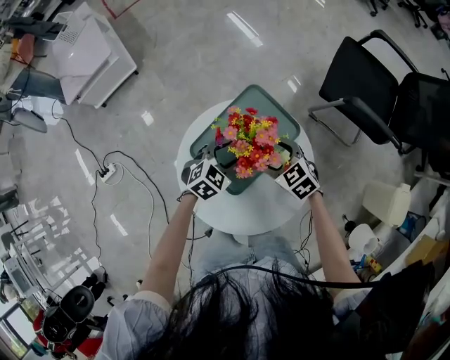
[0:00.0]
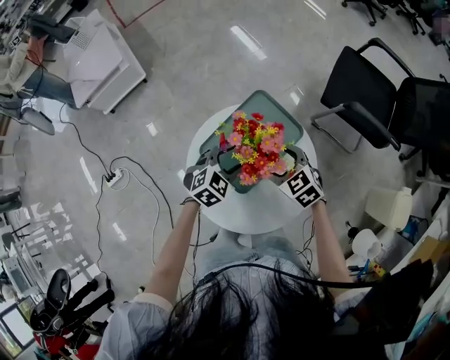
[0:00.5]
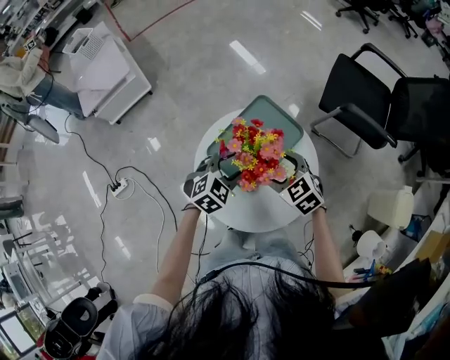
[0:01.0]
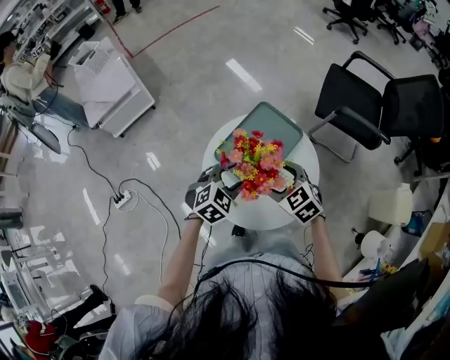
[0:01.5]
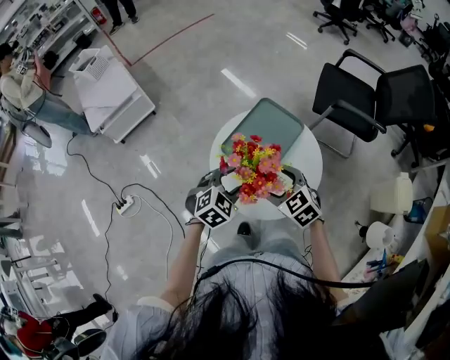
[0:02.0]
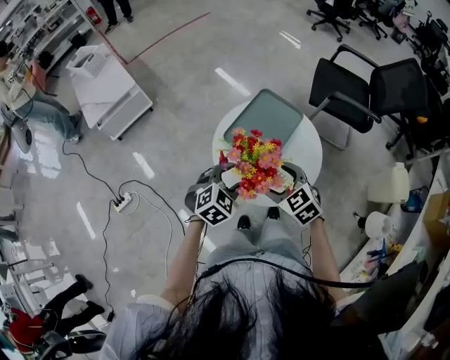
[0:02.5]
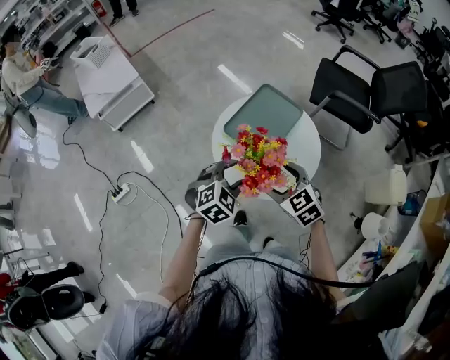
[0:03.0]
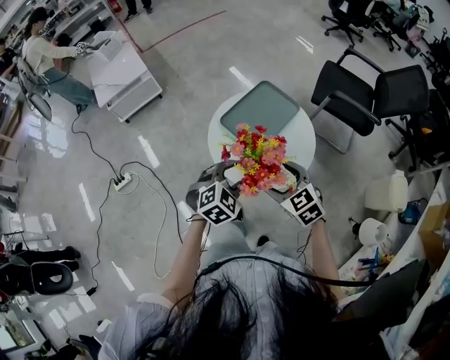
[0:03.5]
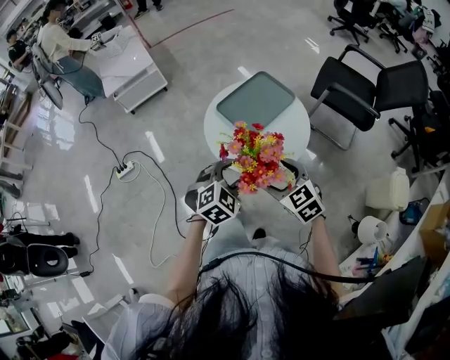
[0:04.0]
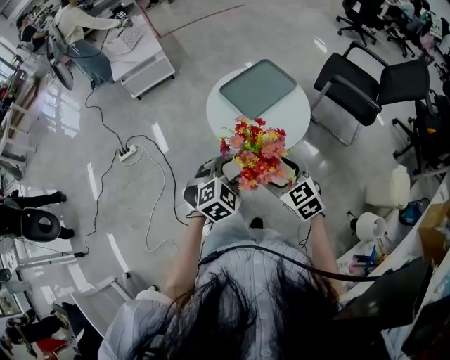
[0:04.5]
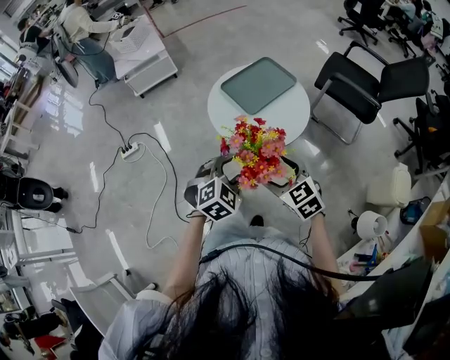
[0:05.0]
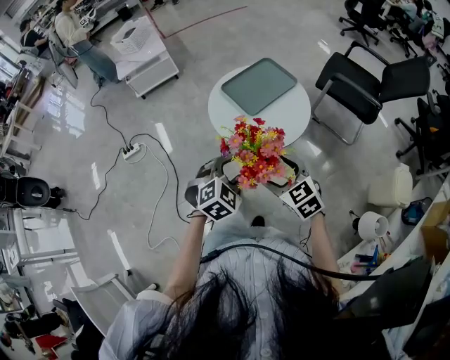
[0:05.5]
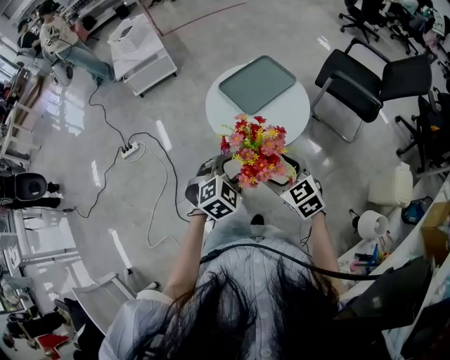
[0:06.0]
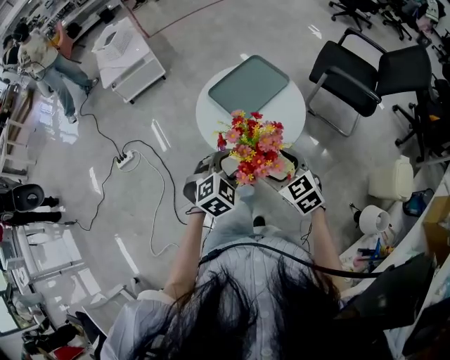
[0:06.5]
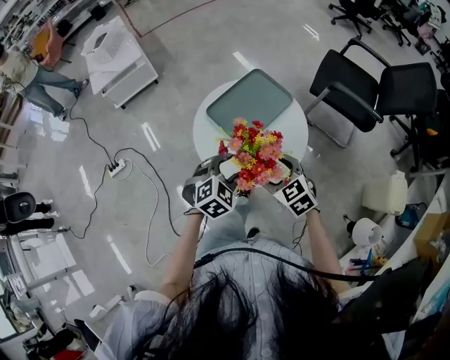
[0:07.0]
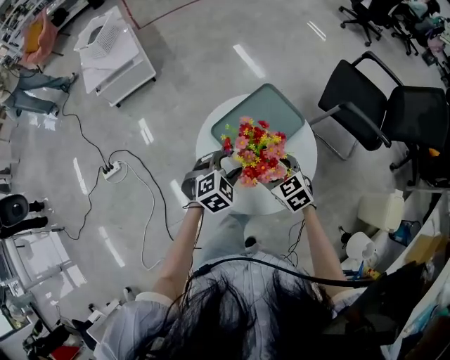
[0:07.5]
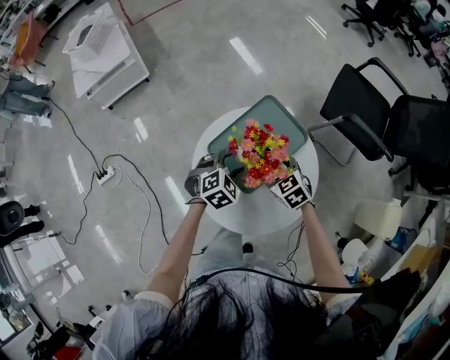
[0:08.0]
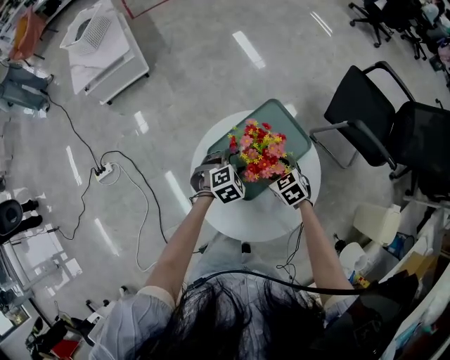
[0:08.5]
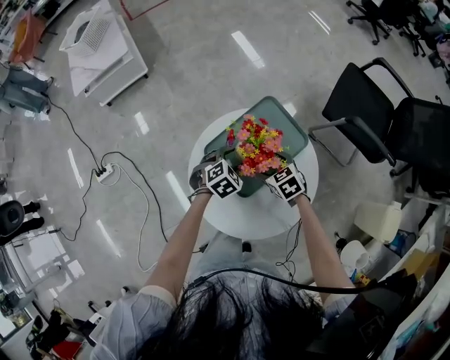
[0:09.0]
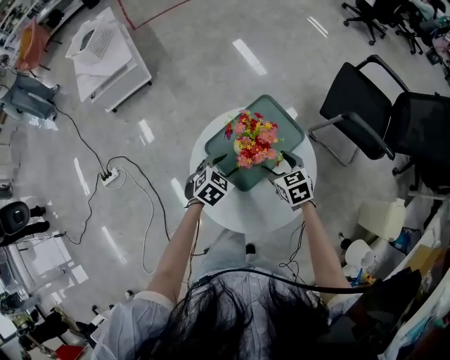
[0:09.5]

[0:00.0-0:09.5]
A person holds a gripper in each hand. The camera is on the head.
0:00.0 to 0:02.0: Both grippers travel together backward, upward and to the left, approximately 20 cm.
0:02.0 to 0:04.0: Both grippers travel together backward and to the right, roughly 20 cm.
0:04.0 to 0:05.5: Both grippers travel together backward, roughly 10 cm.
0:05.5 to 0:07.5: The grippers both shift forward by some 30 cm.
0:07.5 to 0:09.5: The left gripper travels forward and downward by some 10 cm. Meanwhile the right gripper travels forward, downward and to the right by approximately 10 cm.

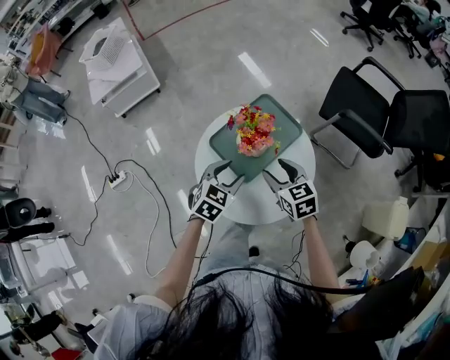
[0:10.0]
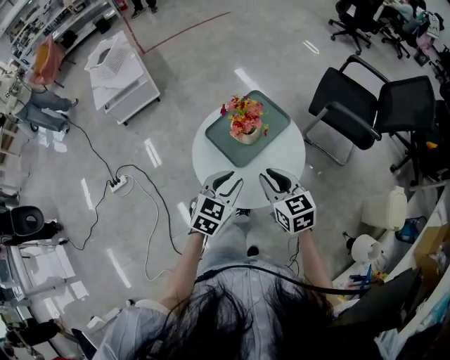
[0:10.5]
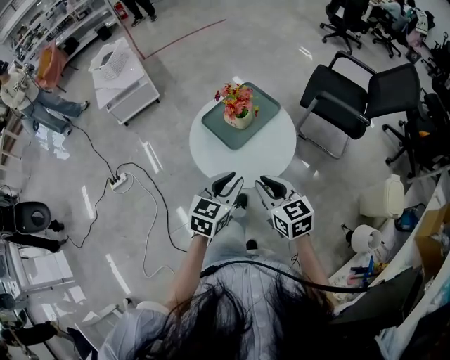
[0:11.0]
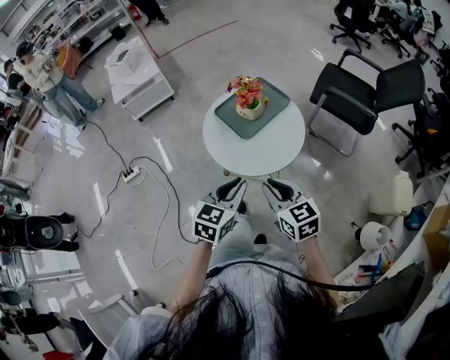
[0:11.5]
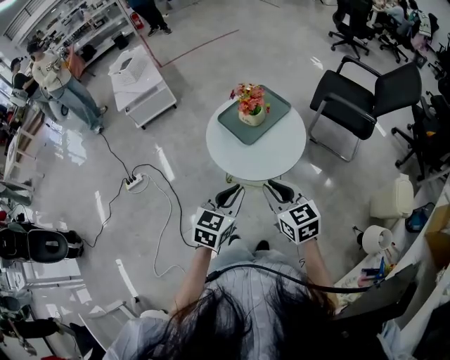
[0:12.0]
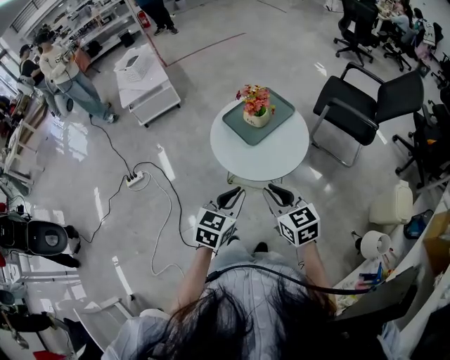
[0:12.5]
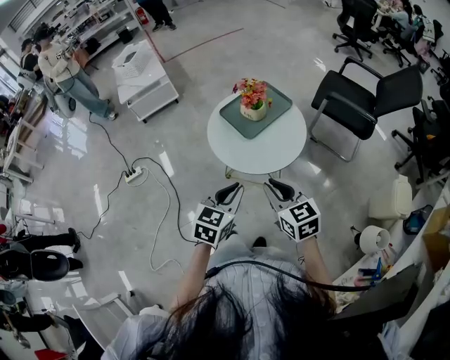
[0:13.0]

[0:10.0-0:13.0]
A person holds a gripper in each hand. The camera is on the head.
0:10.0 to 0:11.5: The left gripper is displaced backward and upward by some 30 cm, and closes up. Meanwhile the right gripper shifts approximately 30 cm backward, and closes.
0:11.5 to 0:13.0: The grippers stay close to where they were, moving slightly.

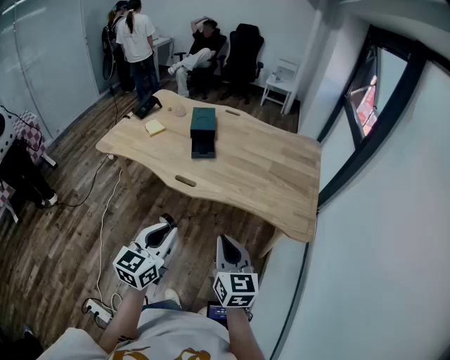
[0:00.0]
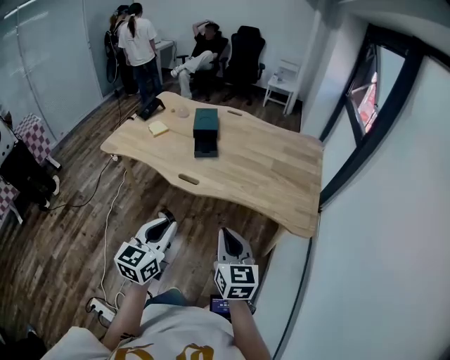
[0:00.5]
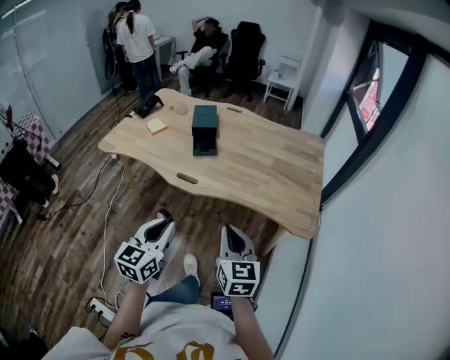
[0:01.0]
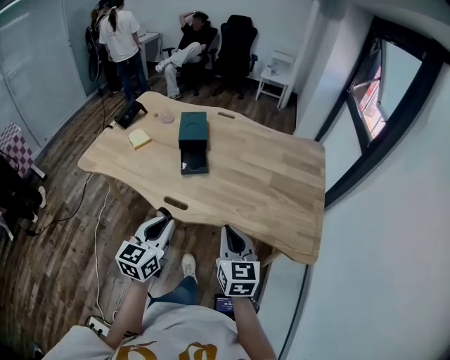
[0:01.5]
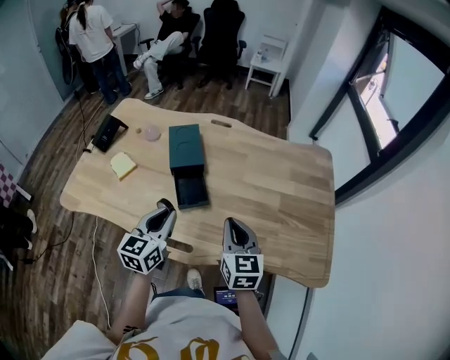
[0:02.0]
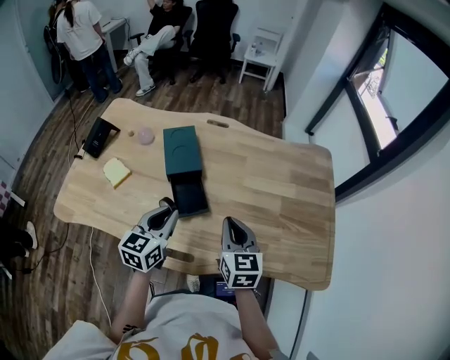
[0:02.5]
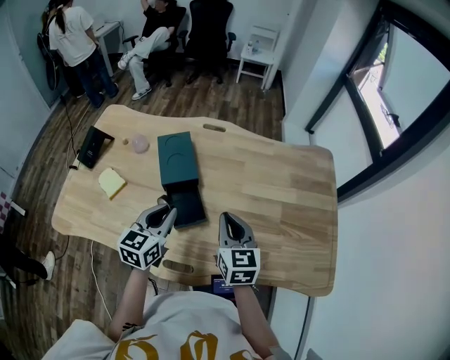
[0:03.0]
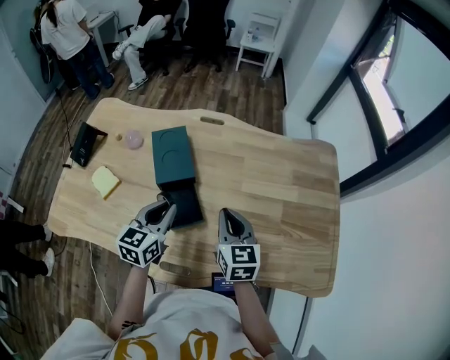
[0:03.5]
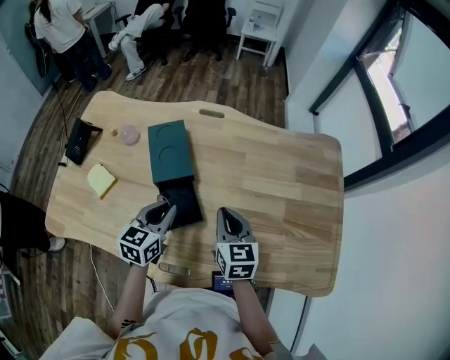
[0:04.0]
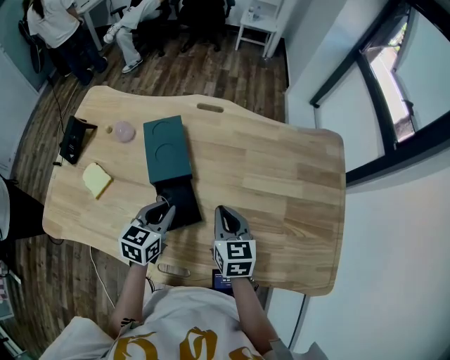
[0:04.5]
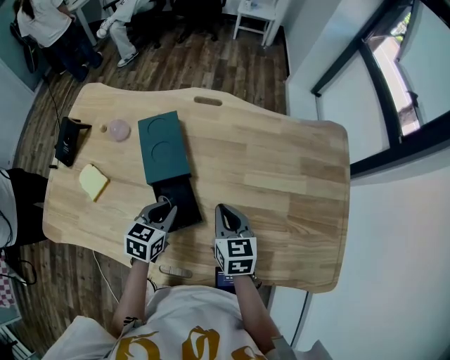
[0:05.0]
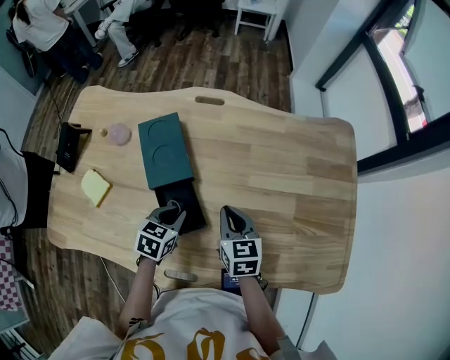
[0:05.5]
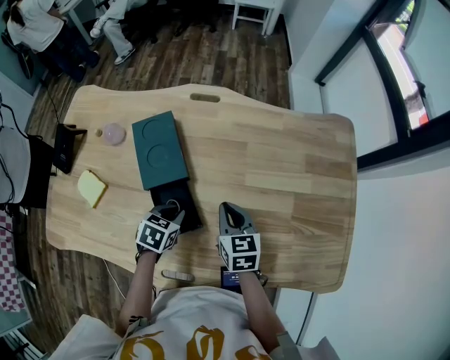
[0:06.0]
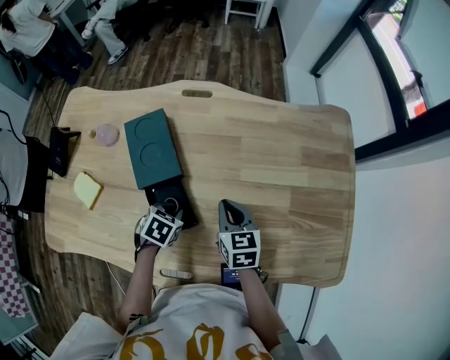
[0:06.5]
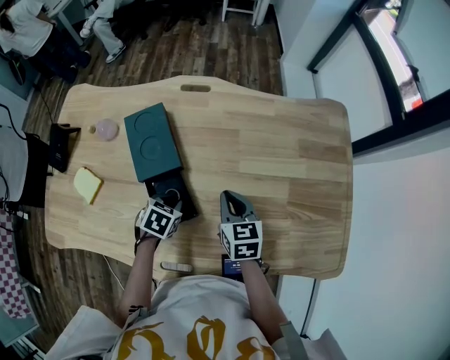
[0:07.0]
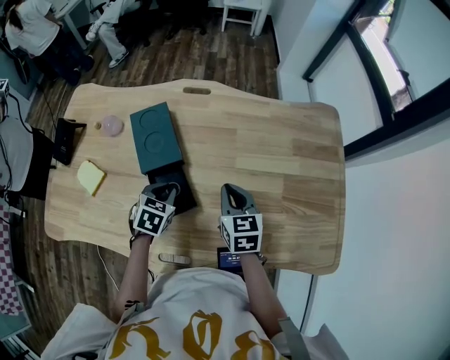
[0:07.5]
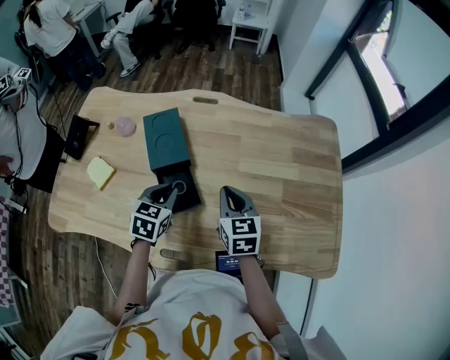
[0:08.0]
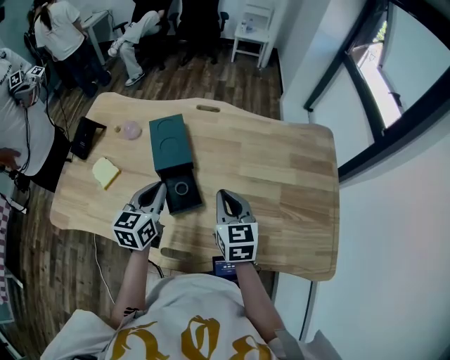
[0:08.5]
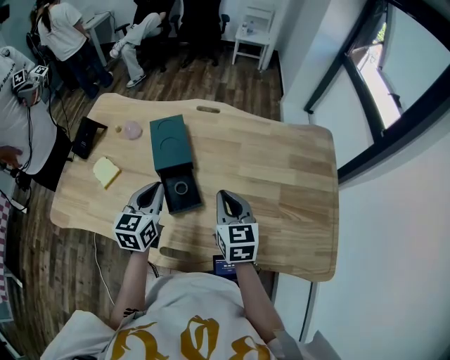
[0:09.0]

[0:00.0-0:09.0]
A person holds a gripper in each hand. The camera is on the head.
0:00.0 to 0:02.0: The pair of grippers is taken forward, approximately 40 cm.
0:02.0 to 0:04.5: The two grippers go approximately 20 cm forward and downward.
0:04.5 to 0:07.0: The right gripper heads downward, covering some 5 cm. Meanwhile the left gripper goes some 10 cm downward, and tilts its fingers some 40 degrees downward.
0:07.0 to 0:09.0: The right gripper is displaced upward and backward by some 15 cm; the left gripper travels upward by approximately 20 cm, and tilts its fingers approximately 50 degrees upward.

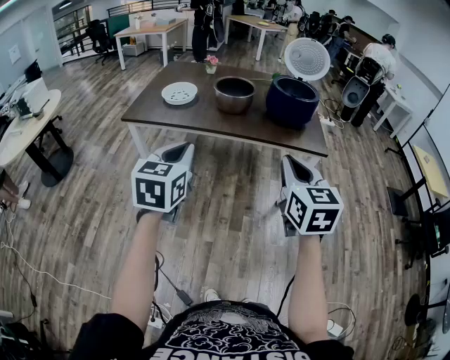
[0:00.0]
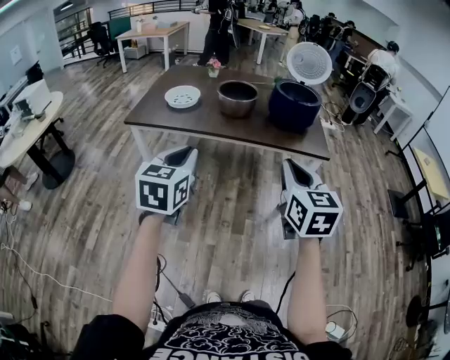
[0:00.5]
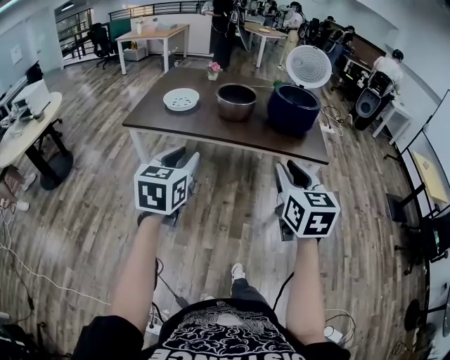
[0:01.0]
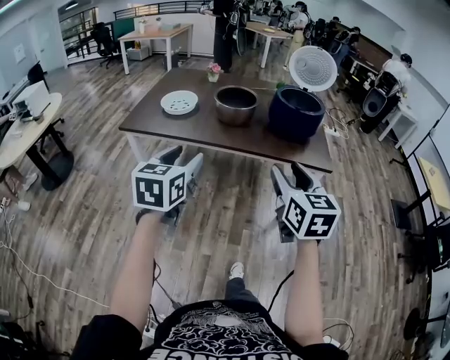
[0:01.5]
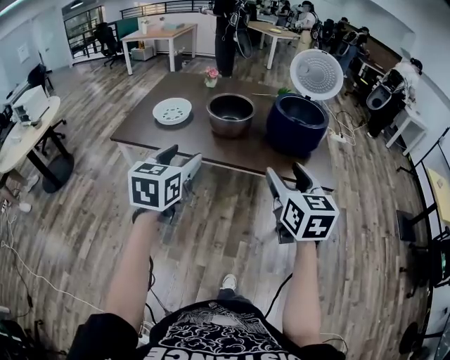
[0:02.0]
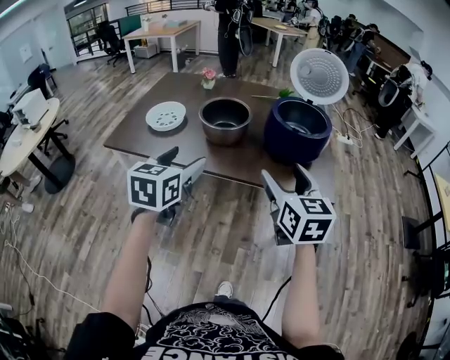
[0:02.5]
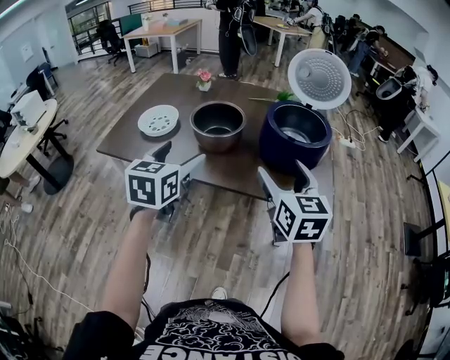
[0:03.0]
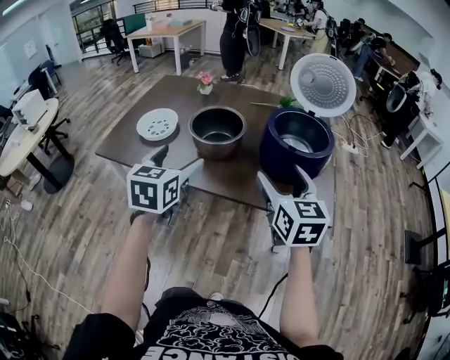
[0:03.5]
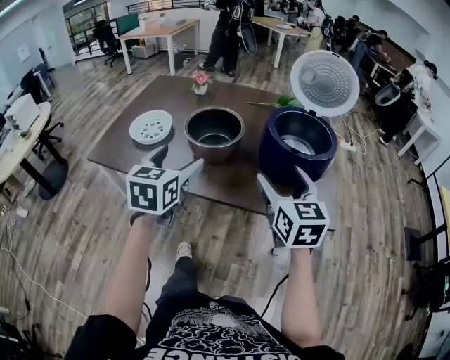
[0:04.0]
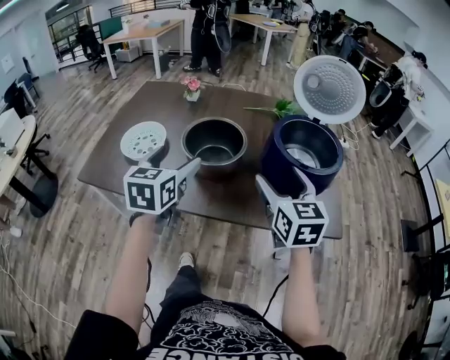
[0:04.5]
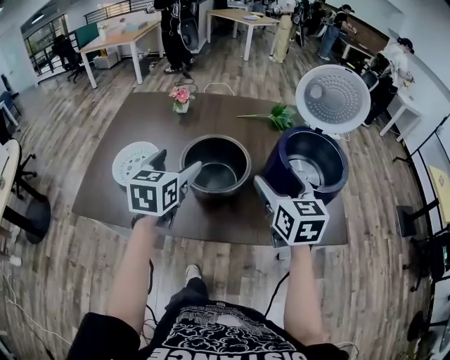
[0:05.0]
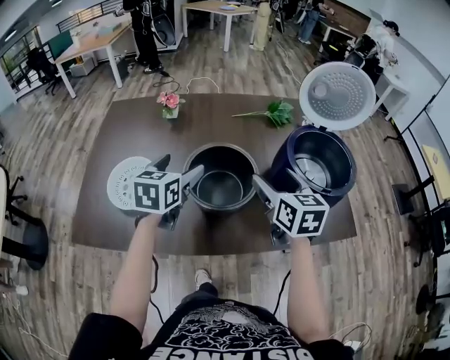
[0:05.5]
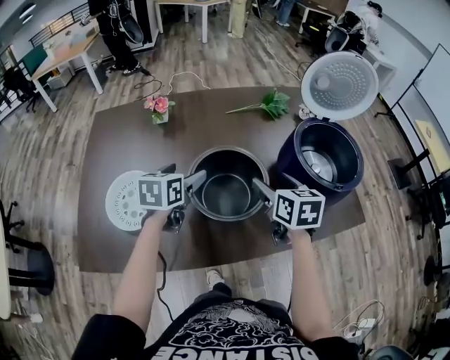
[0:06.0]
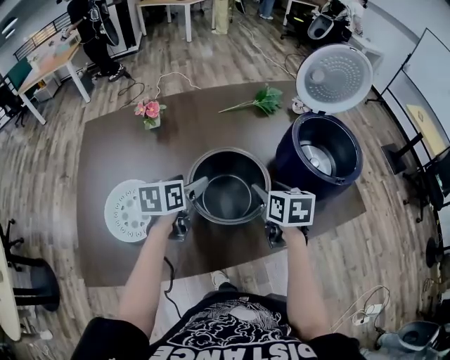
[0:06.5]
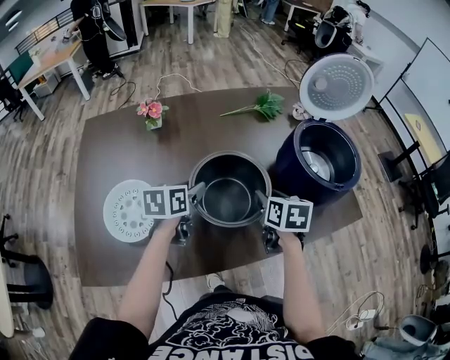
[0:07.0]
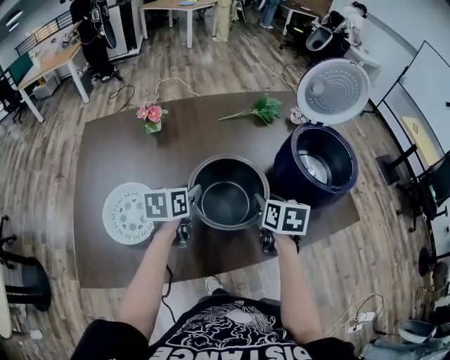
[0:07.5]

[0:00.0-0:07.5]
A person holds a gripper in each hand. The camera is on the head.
0:00.0 to 0:02.0: The two grippers go some 20 cm forward. The right gripper opens; the left gripper opens.
0:02.0 to 0:04.0: The two grippers go approximately 20 cm forward.
0:04.0 to 0:05.5: The right gripper moves forward and to the left, about 20 cm, and changes its angle by roughly 20 degrees. Meanwhile the left gripper goes some 25 cm forward, and swivels about 20 degrees.
0:05.5 to 0:07.5: The two grippers go some 10 cm downward. The right gripper rotates roughly 30 degrees, and closes its fingers. The left gripper swivels approximately 20 degrees, and closes its fingers.
